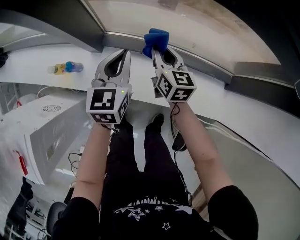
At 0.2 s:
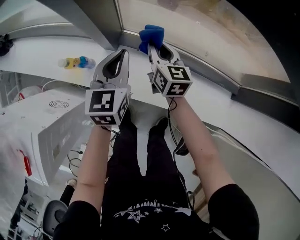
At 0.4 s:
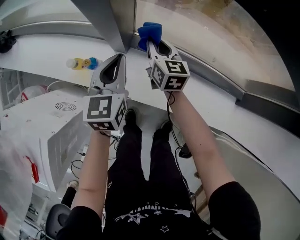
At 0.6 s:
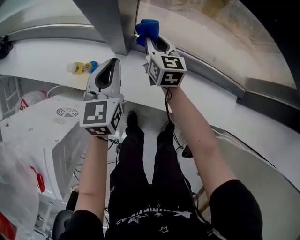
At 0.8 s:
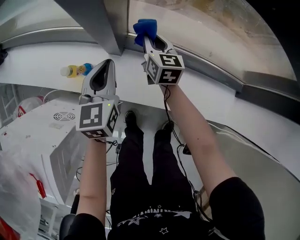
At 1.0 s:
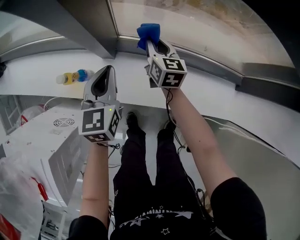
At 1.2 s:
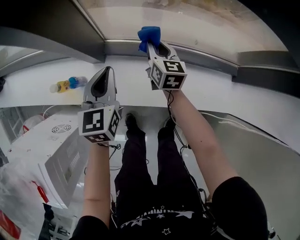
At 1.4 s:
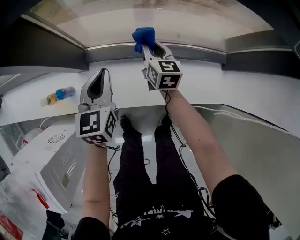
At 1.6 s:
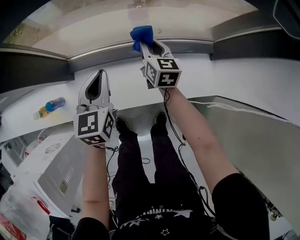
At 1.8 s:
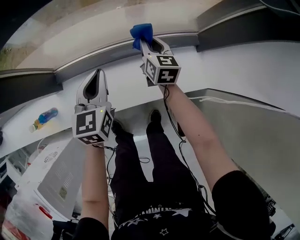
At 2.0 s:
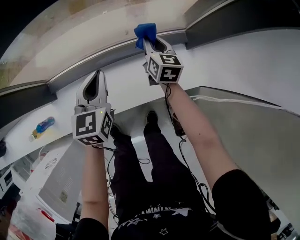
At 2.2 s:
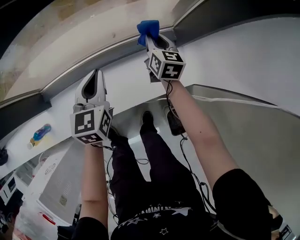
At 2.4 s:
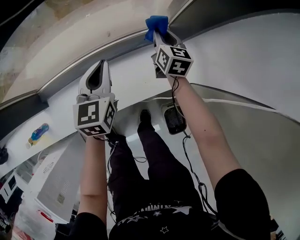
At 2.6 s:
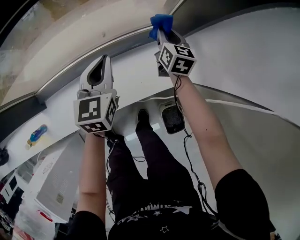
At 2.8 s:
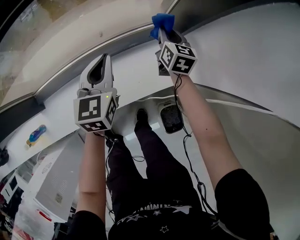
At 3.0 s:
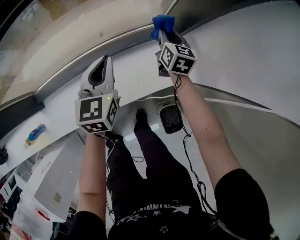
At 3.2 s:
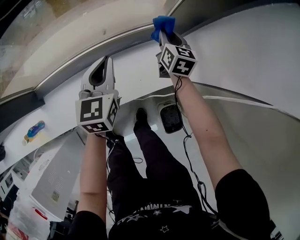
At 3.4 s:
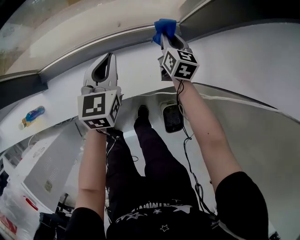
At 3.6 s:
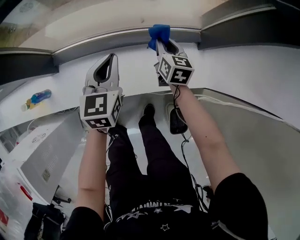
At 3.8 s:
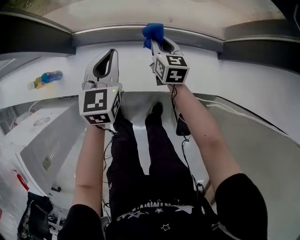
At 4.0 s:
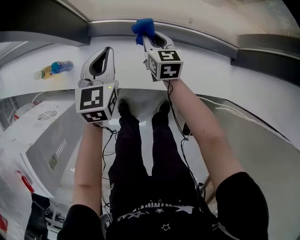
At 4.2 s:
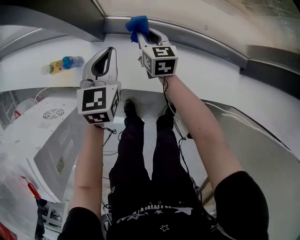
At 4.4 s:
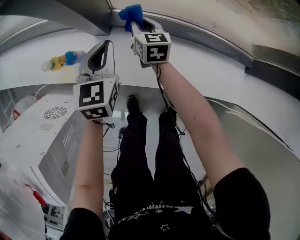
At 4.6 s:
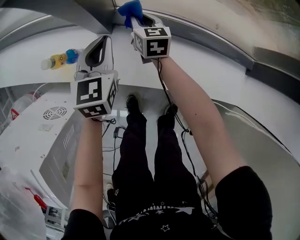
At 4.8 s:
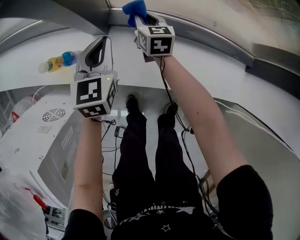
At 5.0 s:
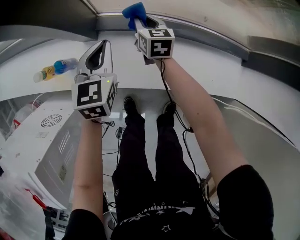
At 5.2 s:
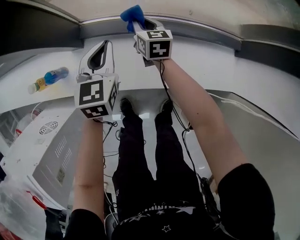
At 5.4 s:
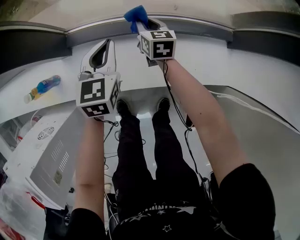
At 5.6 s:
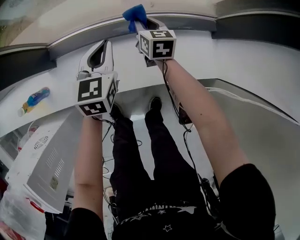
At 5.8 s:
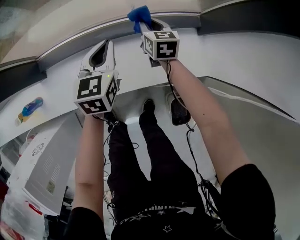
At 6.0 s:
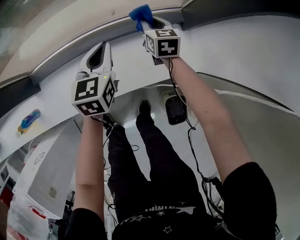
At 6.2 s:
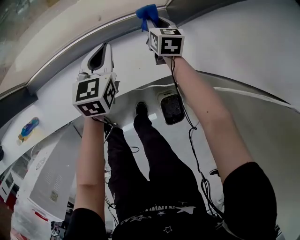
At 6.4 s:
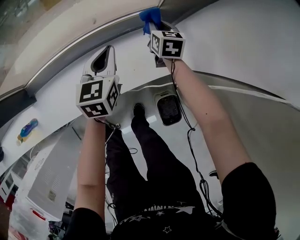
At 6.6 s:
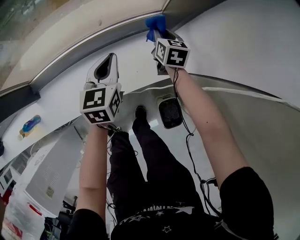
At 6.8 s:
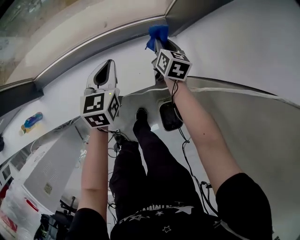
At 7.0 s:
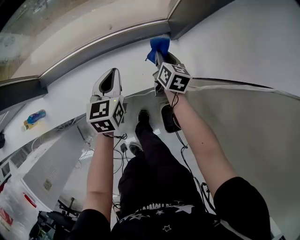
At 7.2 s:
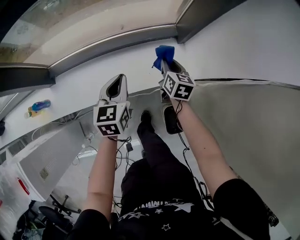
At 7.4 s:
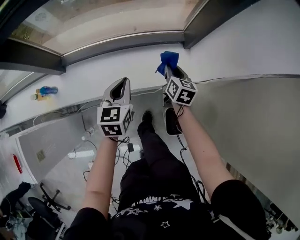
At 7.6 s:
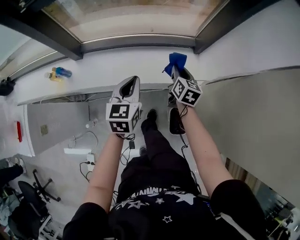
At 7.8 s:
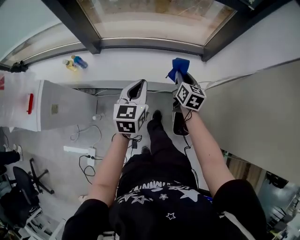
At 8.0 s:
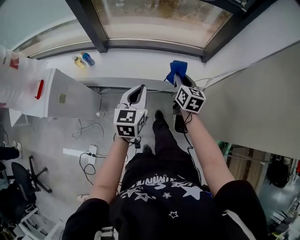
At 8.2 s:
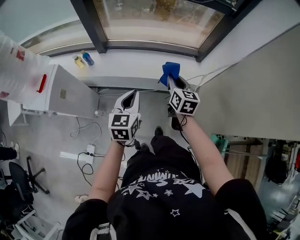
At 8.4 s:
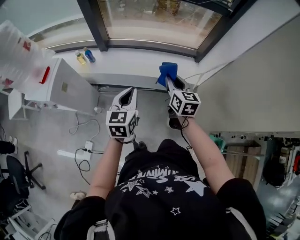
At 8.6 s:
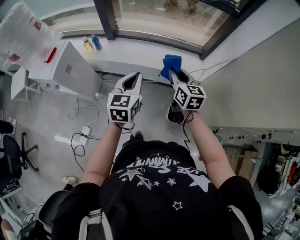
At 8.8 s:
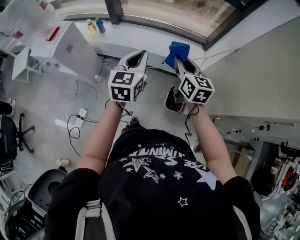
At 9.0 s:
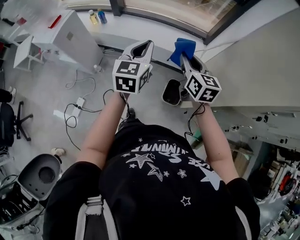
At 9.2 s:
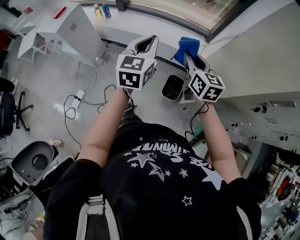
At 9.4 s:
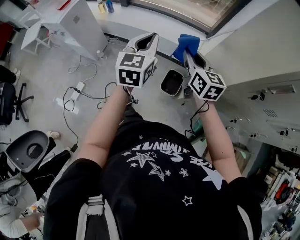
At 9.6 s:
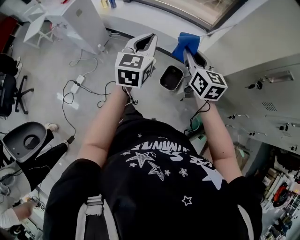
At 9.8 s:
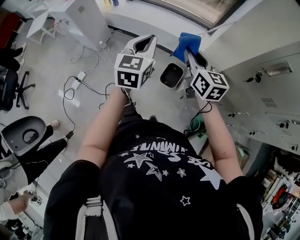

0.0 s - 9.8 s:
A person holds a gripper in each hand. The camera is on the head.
0.0 s - 1.4 s: The right gripper travels downward by approximately 5 cm, and goes to the left and returns, some 20 cm each way; the left gripper travels to the left and back again, some 20 cm each way.
1.4 s - 2.8 s: The pair of grippers is taken about 40 cm. The left gripper swivels approximately 20 degrees, while the right gripper changes its angle by about 30 degrees.
2.8 s - 4.2 s: Both grippers are carried about 60 cm. The left gripper changes its angle by roughly 30 degrees. Meanwhile the right gripper swivels roughly 40 degrees.
4.2 s - 5.6 s: The two grippers go approximately 25 cm to the right.
5.6 s - 7.0 s: Both grippers travel together to the right, about 25 cm. The right gripper rotates approximately 30 degrees.
7.0 s - 8.4 s: The pair of grippers is taken backward, approximately 40 cm. Both grippers travel together upward, about 30 cm. The right gripper swivels about 40 degrees.
8.4 s - 9.8 s: Both grippers move backward and to the right, about 30 cm. The right gripper changes its angle by roughly 20 degrees.

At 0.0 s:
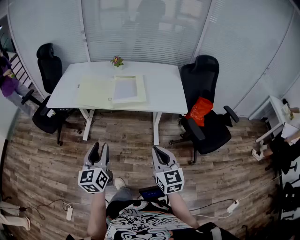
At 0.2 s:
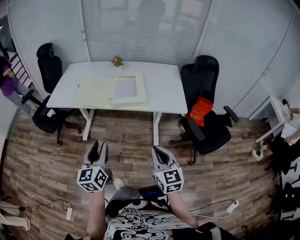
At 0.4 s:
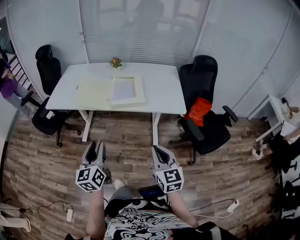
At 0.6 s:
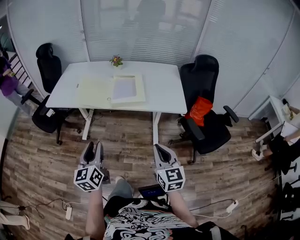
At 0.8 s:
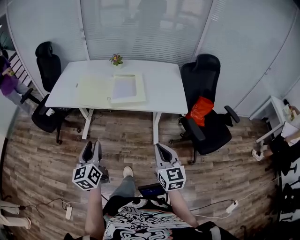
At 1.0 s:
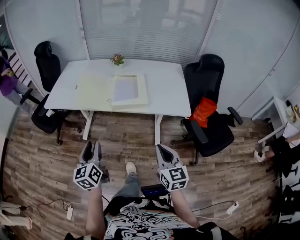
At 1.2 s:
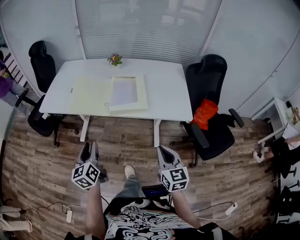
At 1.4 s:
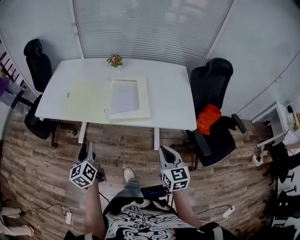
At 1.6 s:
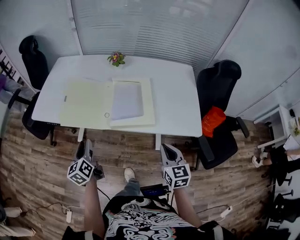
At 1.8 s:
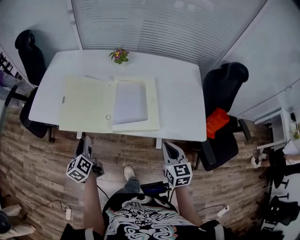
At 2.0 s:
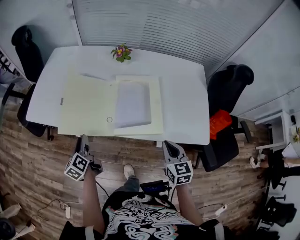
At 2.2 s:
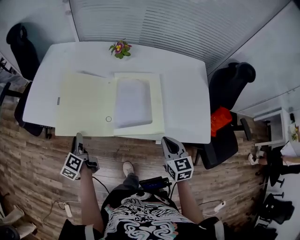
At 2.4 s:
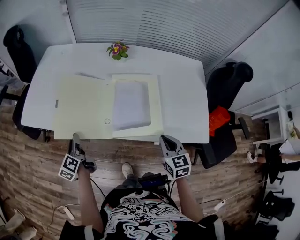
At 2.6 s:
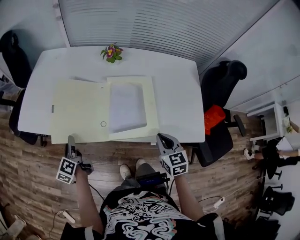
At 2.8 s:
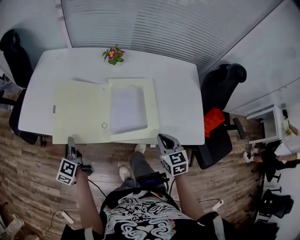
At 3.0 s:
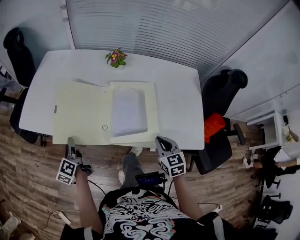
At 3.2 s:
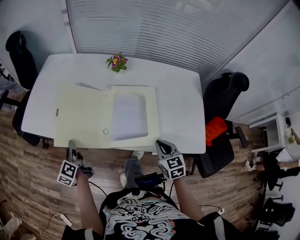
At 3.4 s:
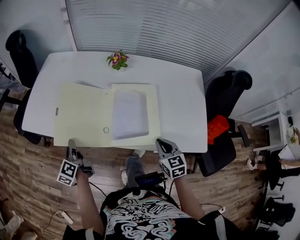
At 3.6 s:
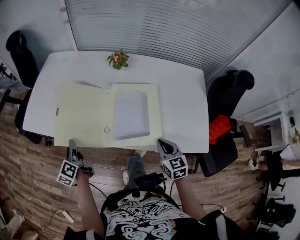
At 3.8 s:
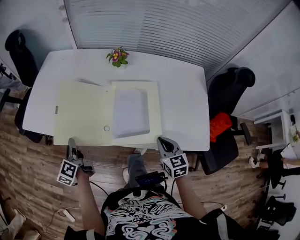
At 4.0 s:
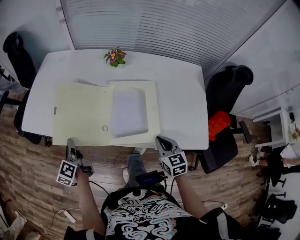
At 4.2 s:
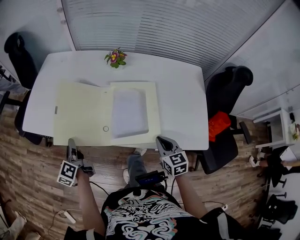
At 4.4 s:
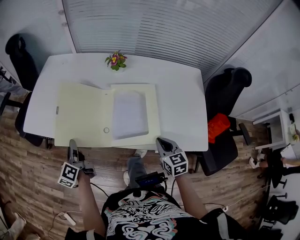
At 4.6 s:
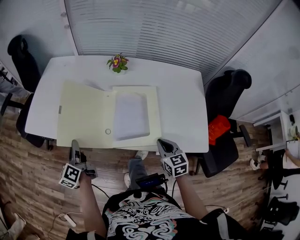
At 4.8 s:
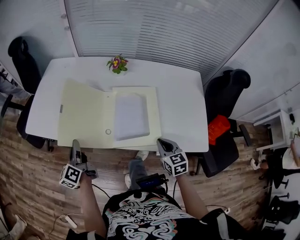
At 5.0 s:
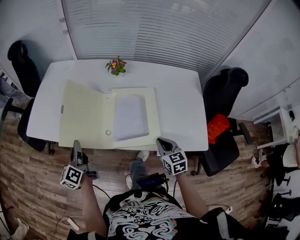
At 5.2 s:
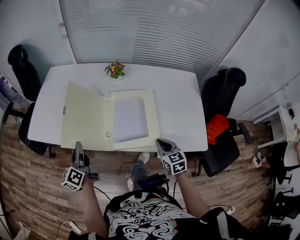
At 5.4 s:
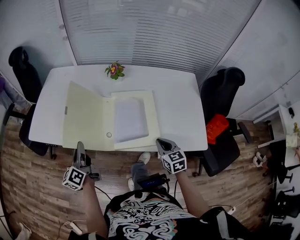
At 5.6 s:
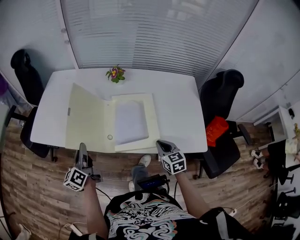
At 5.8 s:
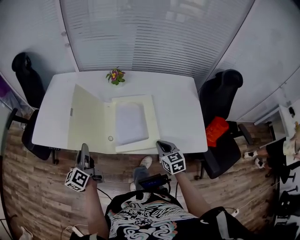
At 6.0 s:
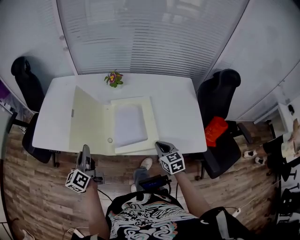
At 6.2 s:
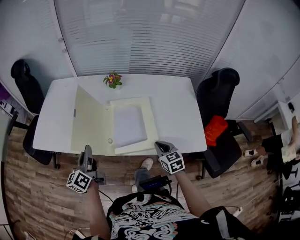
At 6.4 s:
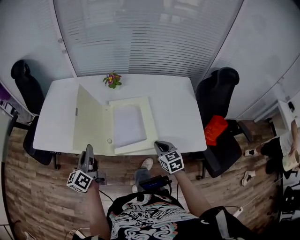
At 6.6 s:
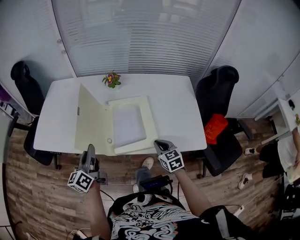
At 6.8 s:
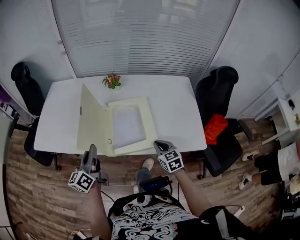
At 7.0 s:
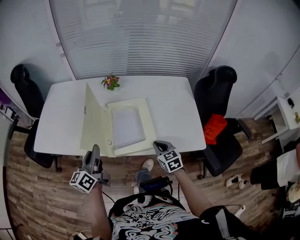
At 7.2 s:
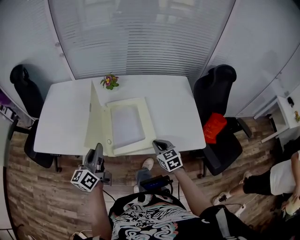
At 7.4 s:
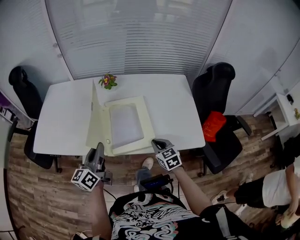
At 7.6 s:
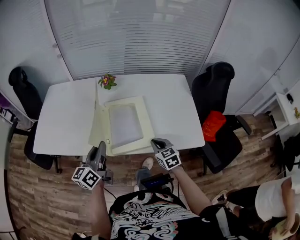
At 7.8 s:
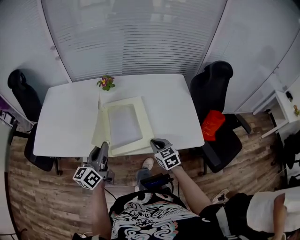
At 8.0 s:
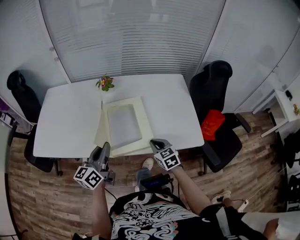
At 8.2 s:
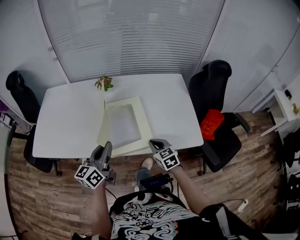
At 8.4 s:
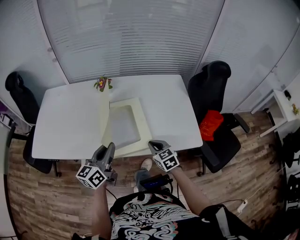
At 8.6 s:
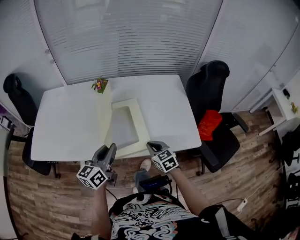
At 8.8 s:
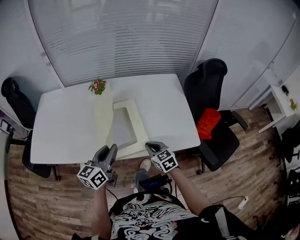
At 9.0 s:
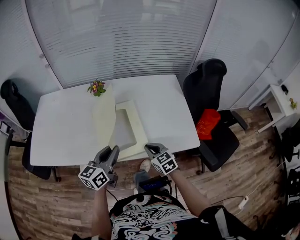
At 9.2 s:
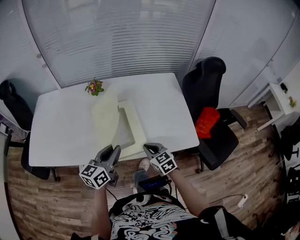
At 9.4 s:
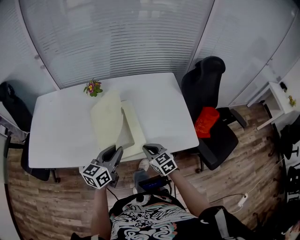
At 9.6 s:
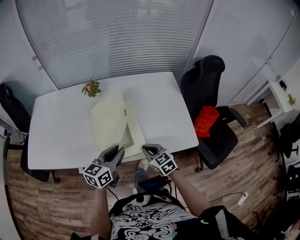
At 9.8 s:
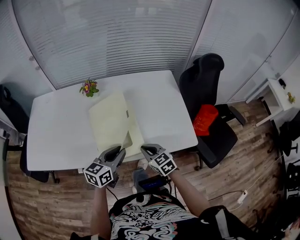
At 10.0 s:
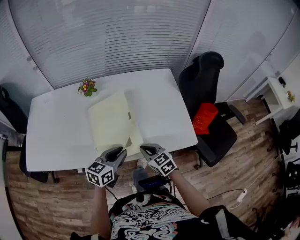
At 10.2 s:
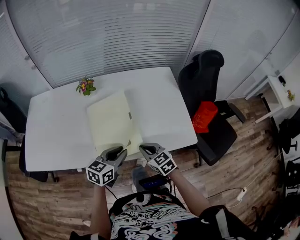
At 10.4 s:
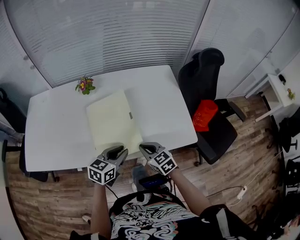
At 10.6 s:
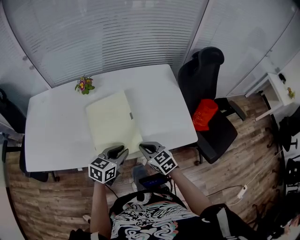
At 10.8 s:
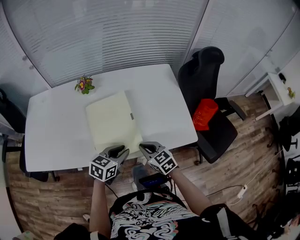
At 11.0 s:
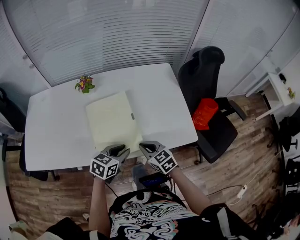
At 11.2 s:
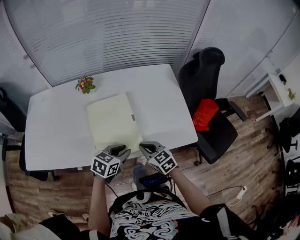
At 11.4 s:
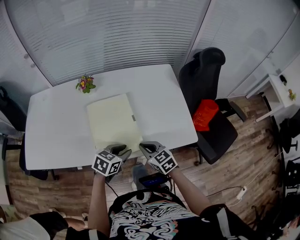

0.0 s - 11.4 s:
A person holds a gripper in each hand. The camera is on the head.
0.0 s - 1.4 s: The right gripper goes roughly 15 cm forward. The left gripper moves forward and downward, about 20 cm.
1.4 s - 2.8 s: The right gripper shifts roughly 20 cm forward, while the left gripper goes some 20 cm forward, downward and to the left, and changes its angle by about 30 degrees.
2.8 s - 4.2 s: The grippers make only small movements.
4.2 s - 5.6 s: The left gripper heads upward, covering some 5 cm.
5.6 s - 7.2 s: The left gripper heads to the right and upward, covering approximately 10 cm, and turns by roughly 20 degrees.
7.2 s - 8.6 s: The left gripper heads to the right, covering some 10 cm.
8.6 s - 10.0 s: The left gripper goes approximately 10 cm to the right and downward, and turns by roughly 30 degrees.
10.0 s - 11.4 s: The left gripper changes place by about 5 cm, and changes its angle by roughly 20 degrees.

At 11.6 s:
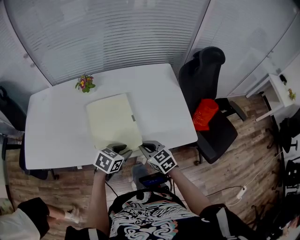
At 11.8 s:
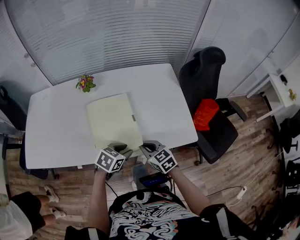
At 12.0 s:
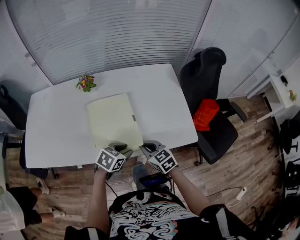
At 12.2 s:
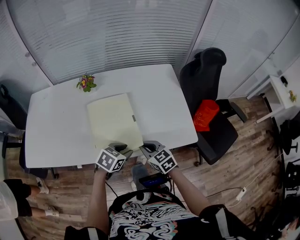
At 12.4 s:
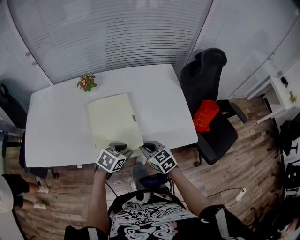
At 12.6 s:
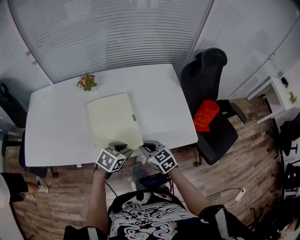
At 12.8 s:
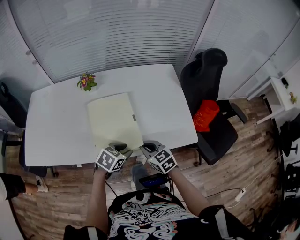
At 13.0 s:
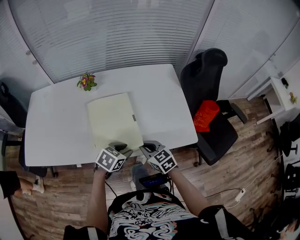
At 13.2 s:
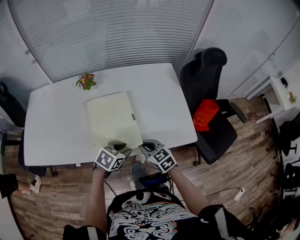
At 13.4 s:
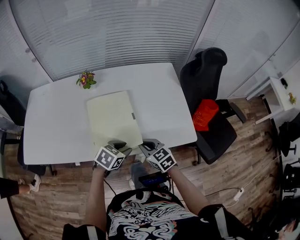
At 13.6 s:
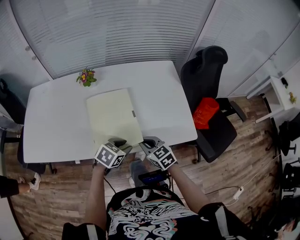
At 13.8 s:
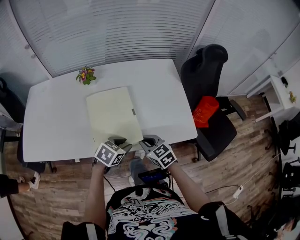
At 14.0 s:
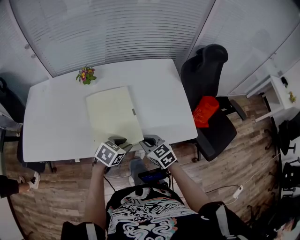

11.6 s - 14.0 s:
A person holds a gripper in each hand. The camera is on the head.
11.6 s - 12.8 s: Neither gripper changes place.
12.8 s - 14.0 s: Both grippers stay put.
